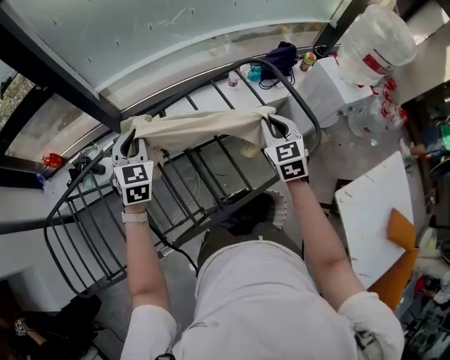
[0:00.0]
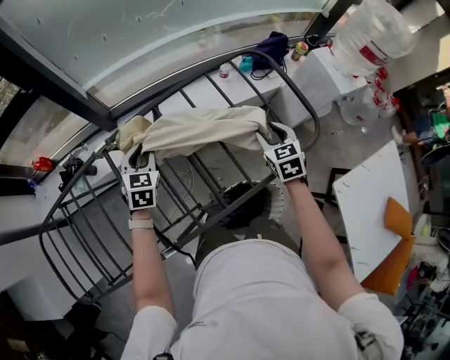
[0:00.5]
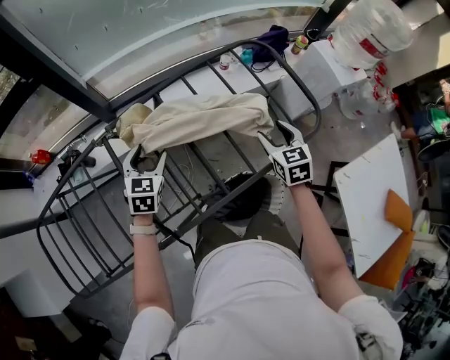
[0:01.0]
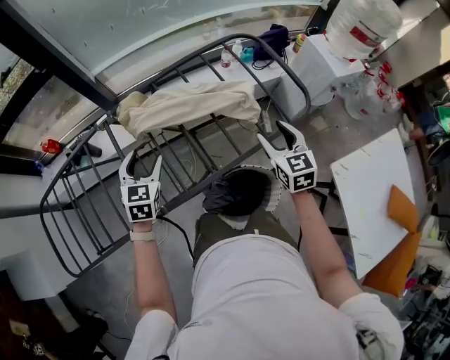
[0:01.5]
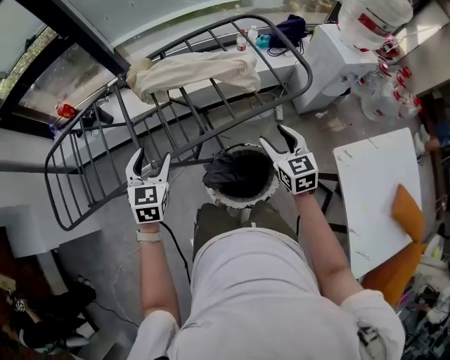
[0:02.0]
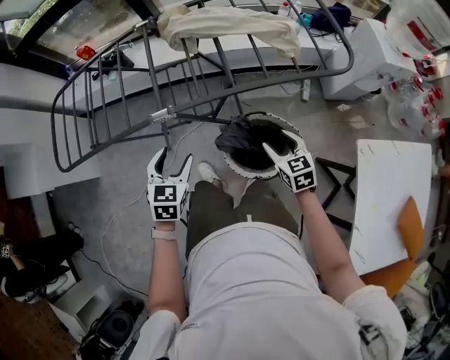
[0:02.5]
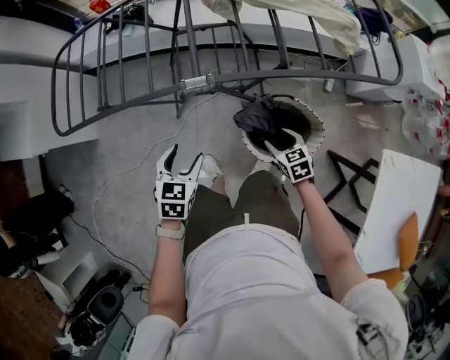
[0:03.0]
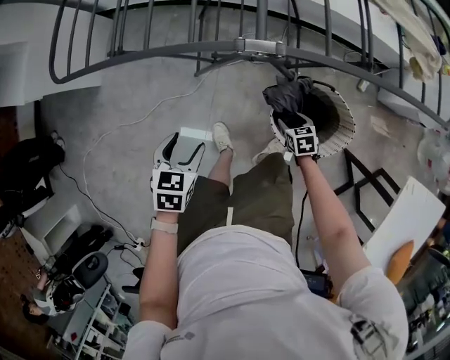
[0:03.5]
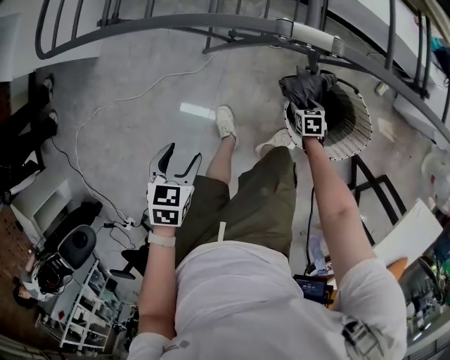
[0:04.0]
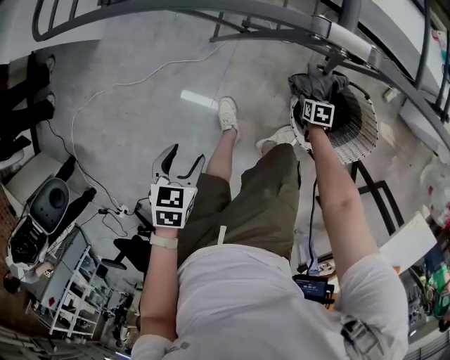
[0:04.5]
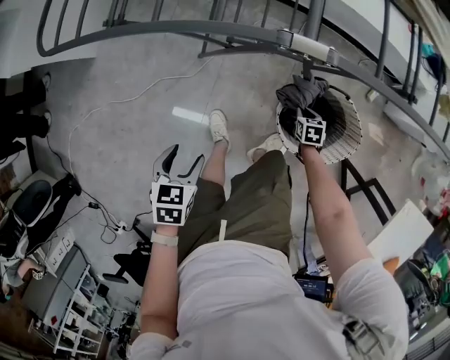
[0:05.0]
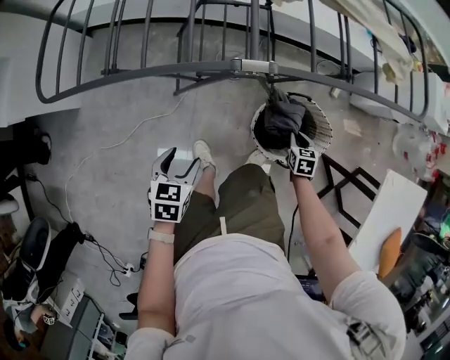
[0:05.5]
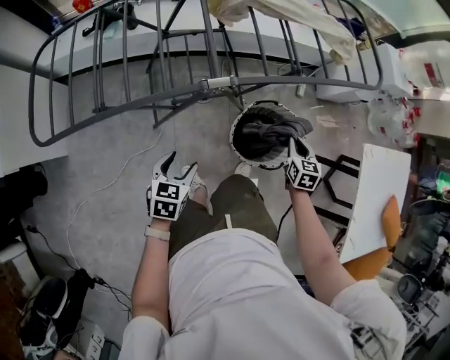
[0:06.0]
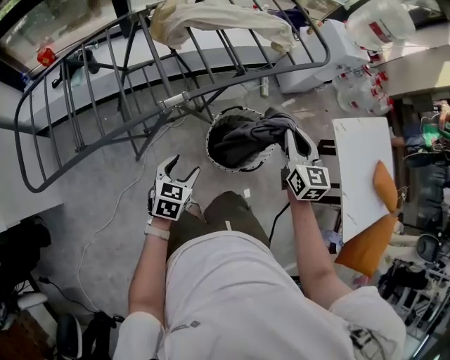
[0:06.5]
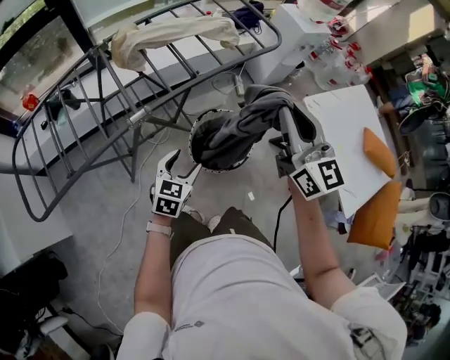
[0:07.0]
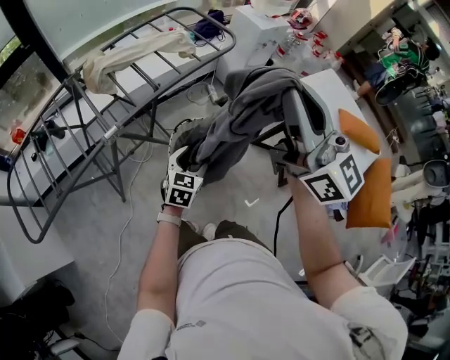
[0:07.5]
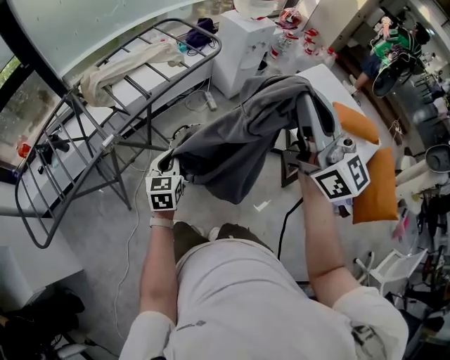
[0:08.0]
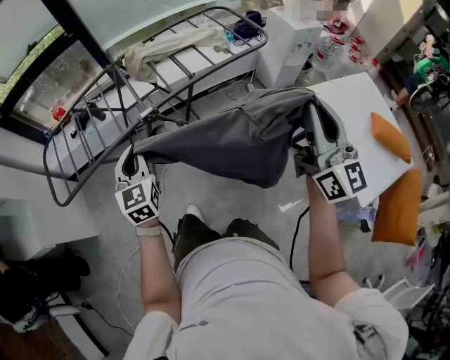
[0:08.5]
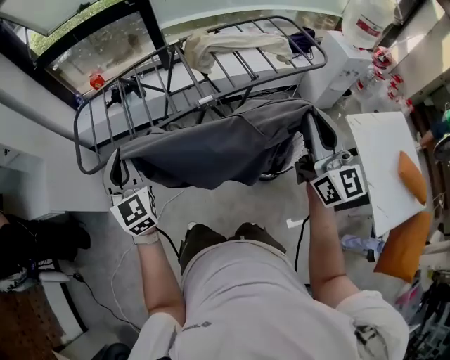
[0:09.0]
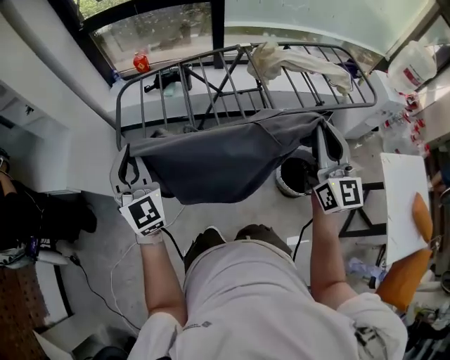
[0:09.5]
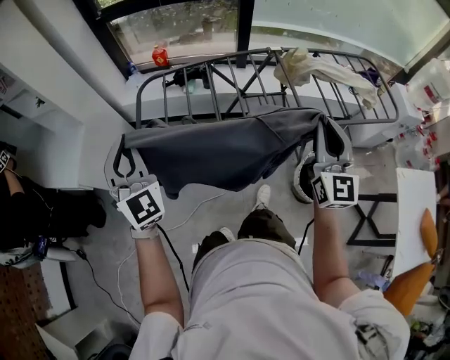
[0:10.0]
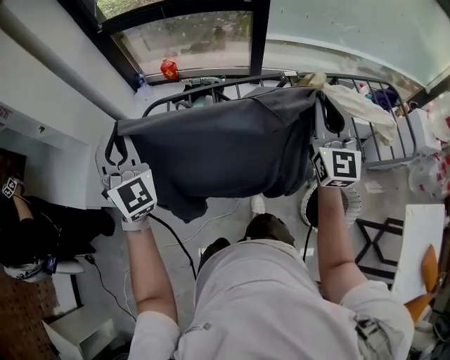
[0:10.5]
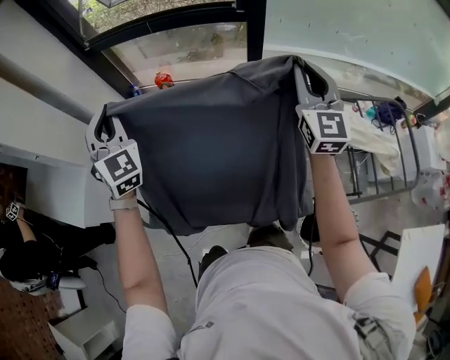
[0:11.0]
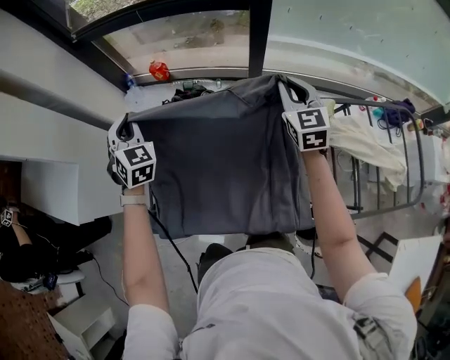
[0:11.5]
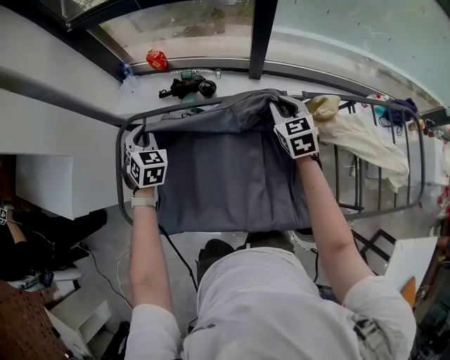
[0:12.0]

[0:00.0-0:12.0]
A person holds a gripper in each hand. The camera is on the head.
0:00.0 to 0:02.0: The two grippers go some 30 cm backward. The left gripper opens. The right gripper opens.
0:02.0 to 0:04.0: The left gripper shifts some 50 cm to the left, backward and downward, and tilts its fingers roughly 30 degrees downward, while the right gripper heads downward and to the left, covering about 60 cm, and tips its fingers downward by approximately 40 degrees.
0:04.0 to 0:06.0: The left gripper moves some 15 cm, and turns by about 30 degrees. The right gripper is displaced upward by approximately 30 cm, rotates about 40 degrees, and closes up.
0:06.0 to 0:08.0: The left gripper travels to the right and upward by approximately 30 cm, rotates approximately 30 degrees, and closes its fingers, while the right gripper moves upward, about 50 cm, and angles its fingers upward, by roughly 60 degrees.
0:08.0 to 0:10.0: The pair of grippers is taken roughly 60 cm. The left gripper tilts its fingers roughly 30 degrees upward. Meanwhile the right gripper rotates some 20 degrees.
0:10.0 to 0:12.0: The two grippers travel together, forward, some 40 cm. The grippers both shift downward by about 20 cm. The right gripper tips its fingers downward by about 40 degrees. Meanwhile the left gripper points its fingers approximately 40 degrees further downward.

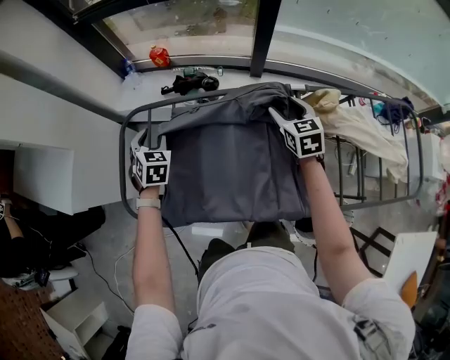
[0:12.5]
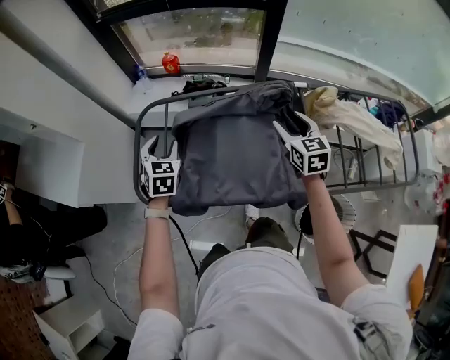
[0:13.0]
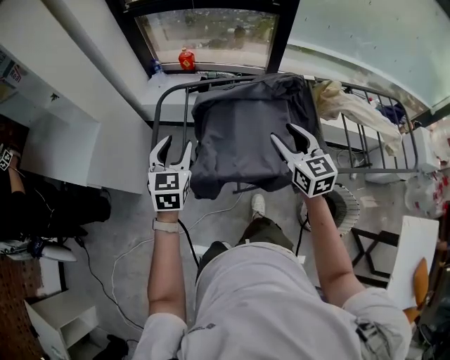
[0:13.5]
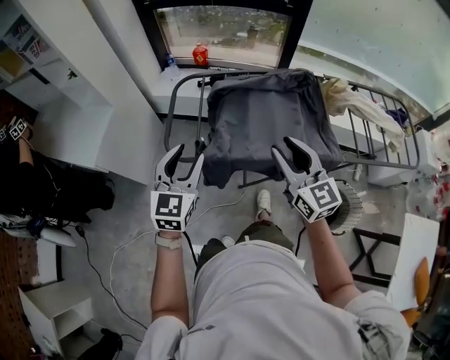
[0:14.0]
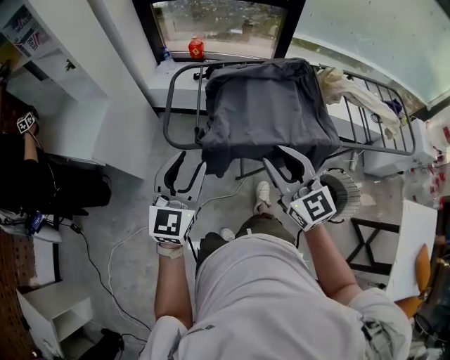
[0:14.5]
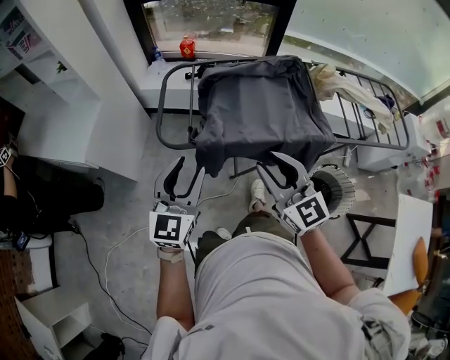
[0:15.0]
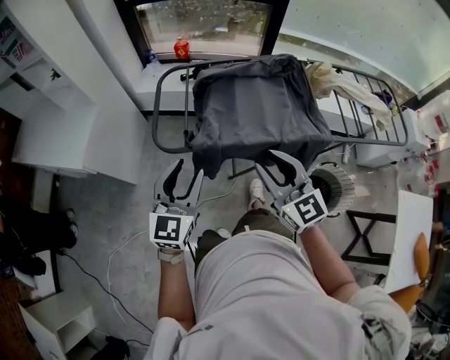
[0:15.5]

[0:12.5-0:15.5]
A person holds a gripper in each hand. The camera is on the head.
0:12.5 to 0:14.0: The right gripper heads backward, to the left and upward, covering approximately 50 cm, changes its angle by some 30 degrees, and closes up. Meanwhile the left gripper heads backward and upward, covering approximately 35 cm, and swivels roughly 40 degrees.
0:14.0 to 0:15.5: The two grippers go approximately 10 cm backward.

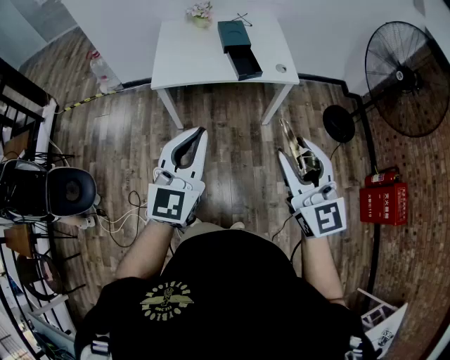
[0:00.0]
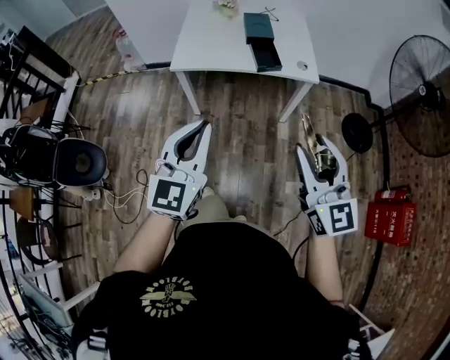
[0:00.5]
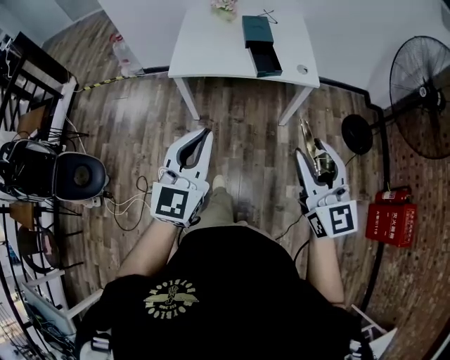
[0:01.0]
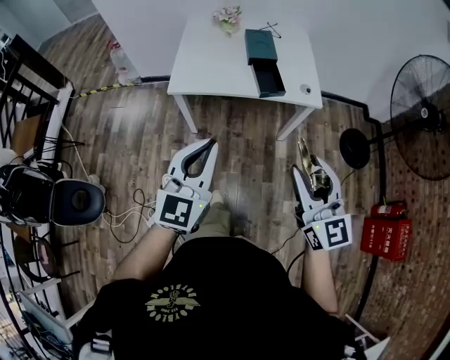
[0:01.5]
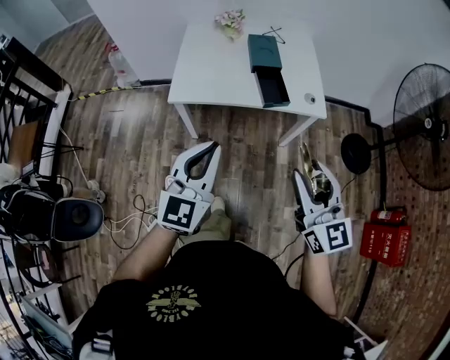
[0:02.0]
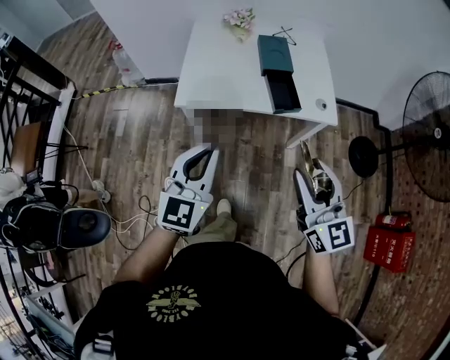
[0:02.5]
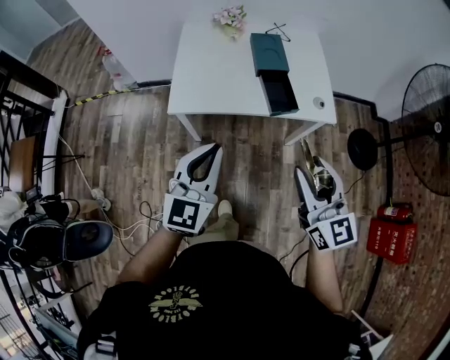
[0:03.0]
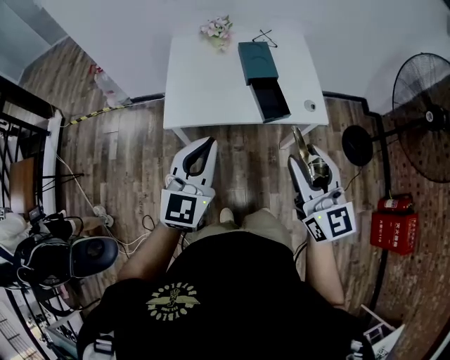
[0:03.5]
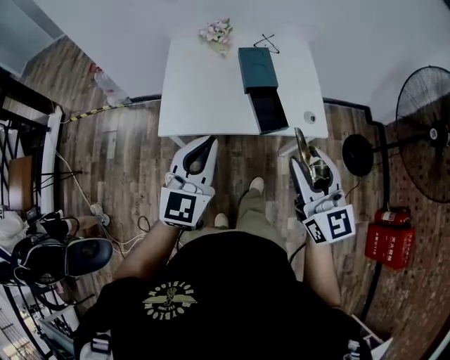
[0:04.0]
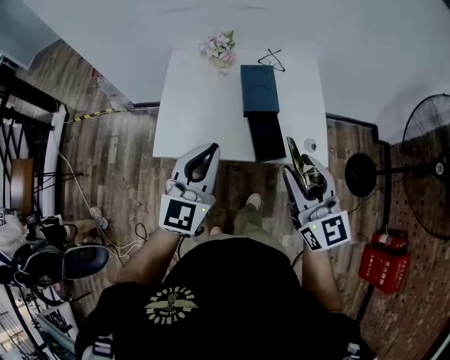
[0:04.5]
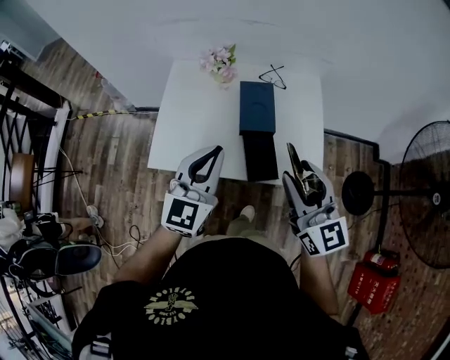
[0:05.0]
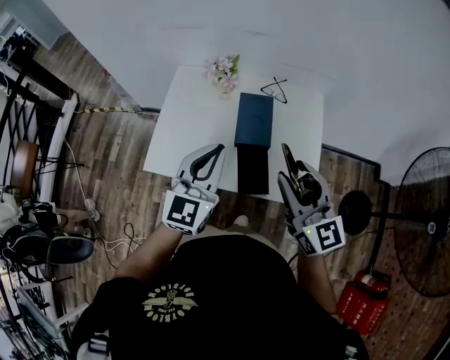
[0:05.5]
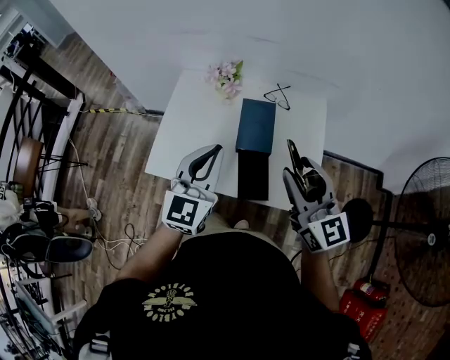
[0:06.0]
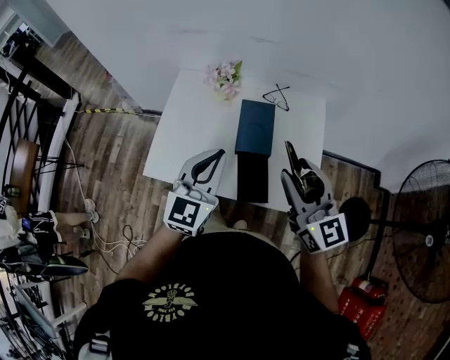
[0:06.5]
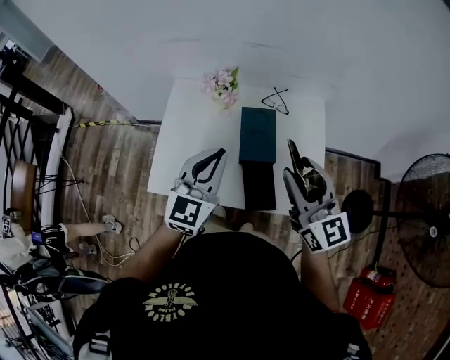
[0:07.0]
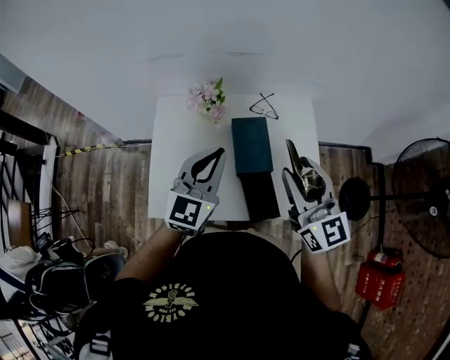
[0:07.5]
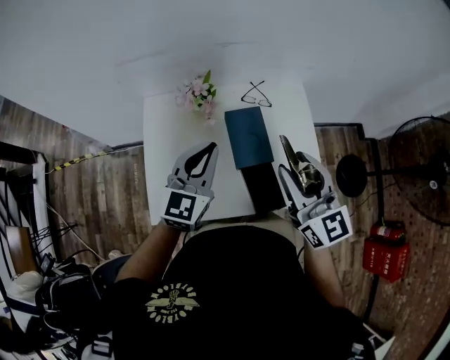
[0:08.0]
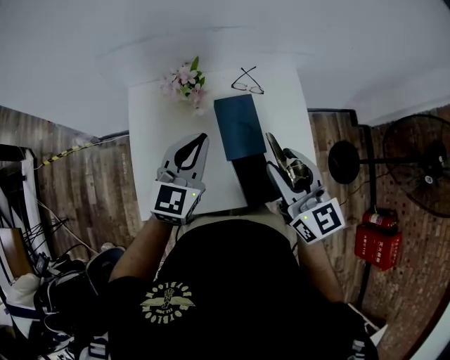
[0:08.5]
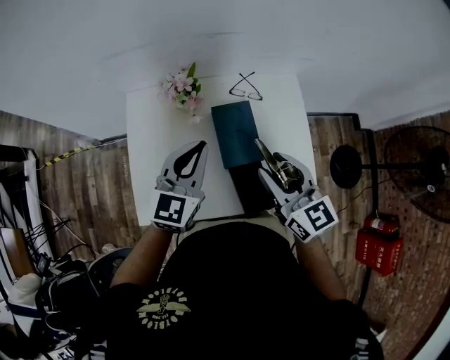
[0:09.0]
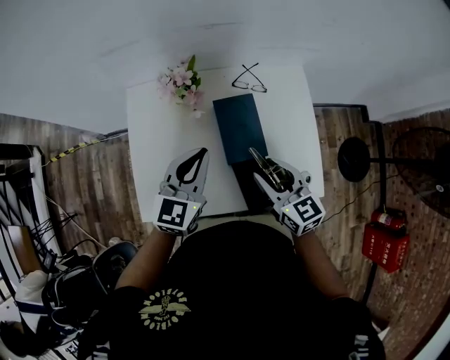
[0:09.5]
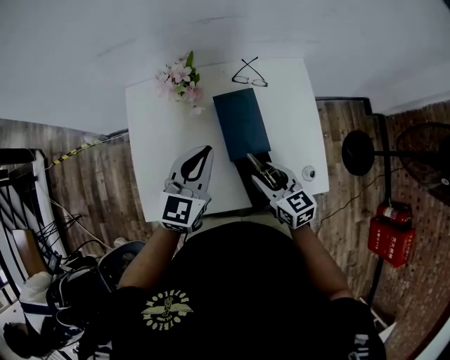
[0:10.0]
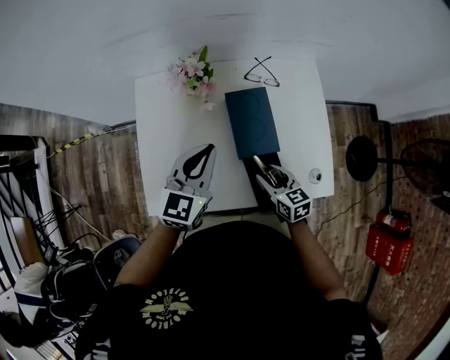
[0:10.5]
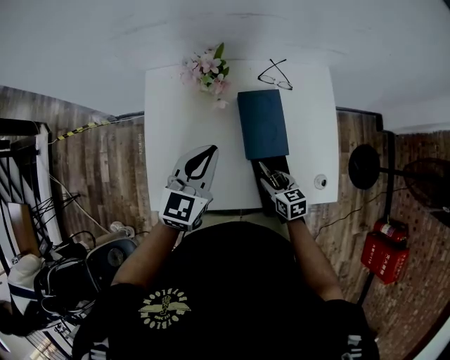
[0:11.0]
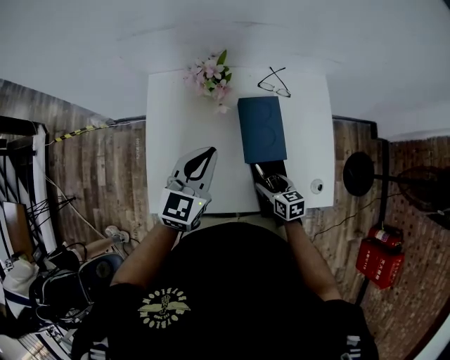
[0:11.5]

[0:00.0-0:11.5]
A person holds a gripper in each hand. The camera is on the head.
0:00.0 to 0:02.0: The grippers both shift forward by about 15 cm.
0:02.0 to 0:04.0: Both grippers move forward, roughly 20 cm.
0:04.0 to 0:06.0: The two grippers go about 25 cm forward and to the right.
0:06.0 to 0:07.5: The right gripper goes some 10 cm forward and to the left. The left gripper goes approximately 15 cm forward.
0:07.5 to 0:09.5: The left gripper shifts roughly 10 cm downward, while the right gripper moves downward, about 20 cm, and changes its angle by approximately 30 degrees.
0:09.5 to 0:11.5: The right gripper goes roughly 20 cm downward, turns by some 30 degrees, and opens its fingers, while the left gripper shifts approximately 5 cm to the left.
